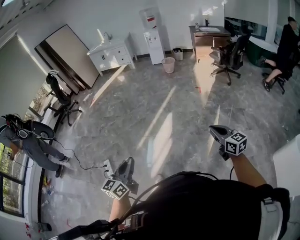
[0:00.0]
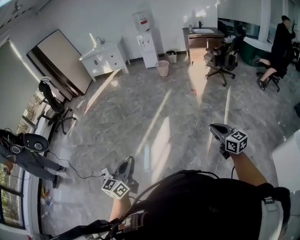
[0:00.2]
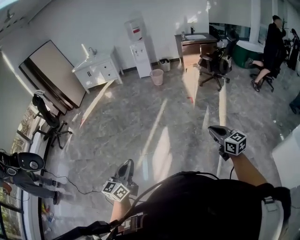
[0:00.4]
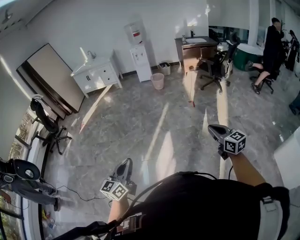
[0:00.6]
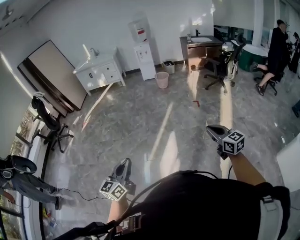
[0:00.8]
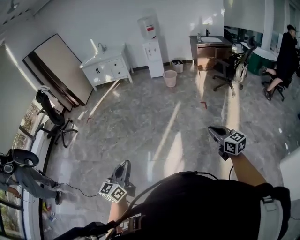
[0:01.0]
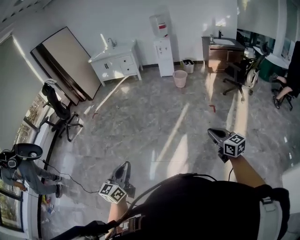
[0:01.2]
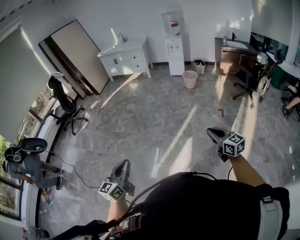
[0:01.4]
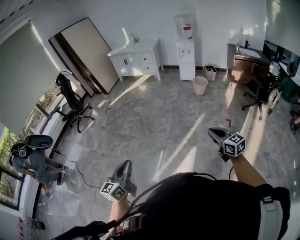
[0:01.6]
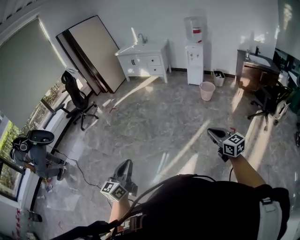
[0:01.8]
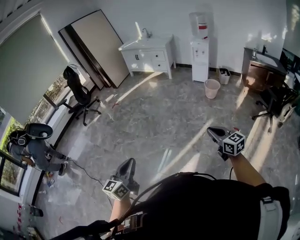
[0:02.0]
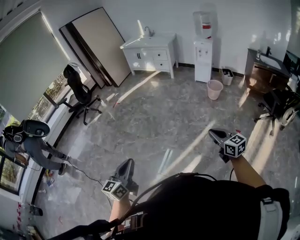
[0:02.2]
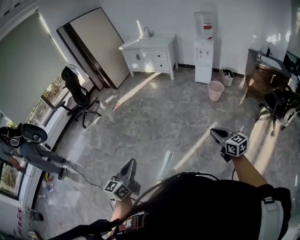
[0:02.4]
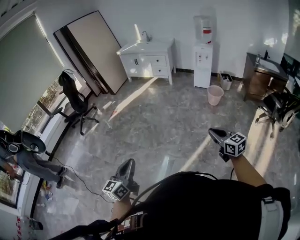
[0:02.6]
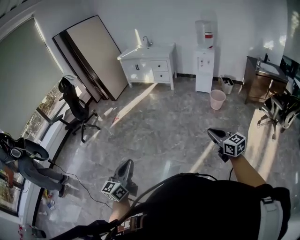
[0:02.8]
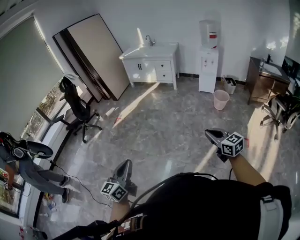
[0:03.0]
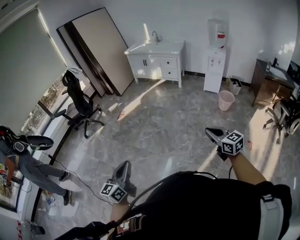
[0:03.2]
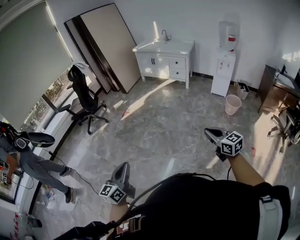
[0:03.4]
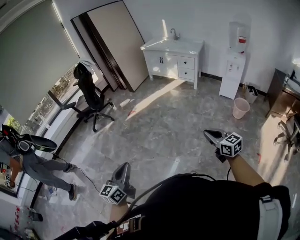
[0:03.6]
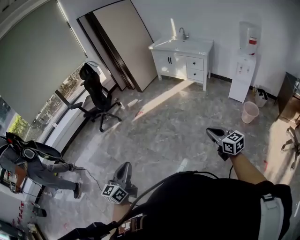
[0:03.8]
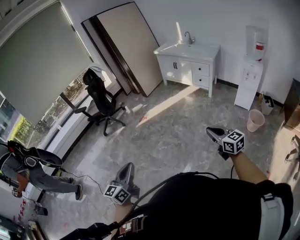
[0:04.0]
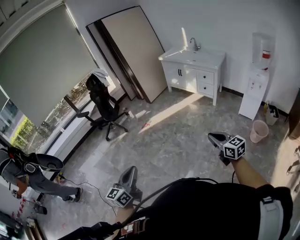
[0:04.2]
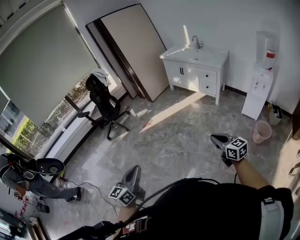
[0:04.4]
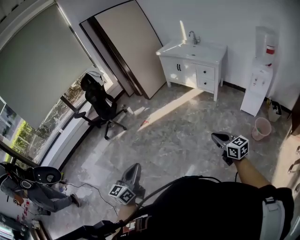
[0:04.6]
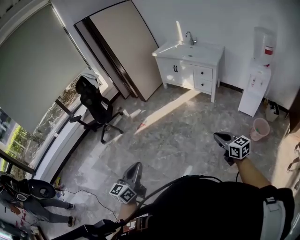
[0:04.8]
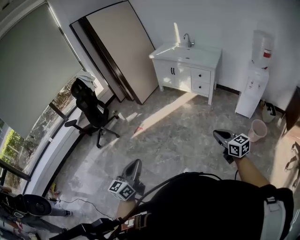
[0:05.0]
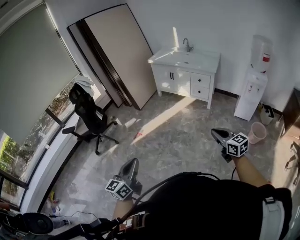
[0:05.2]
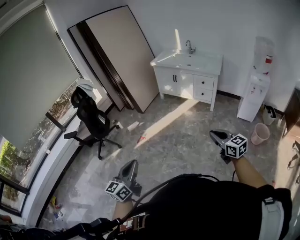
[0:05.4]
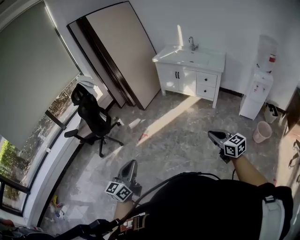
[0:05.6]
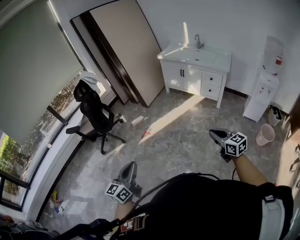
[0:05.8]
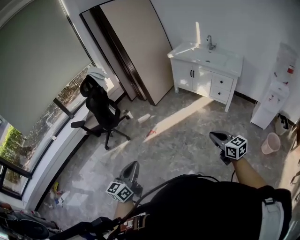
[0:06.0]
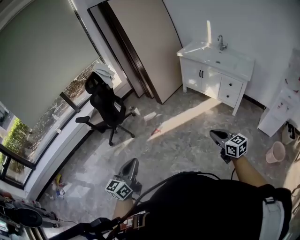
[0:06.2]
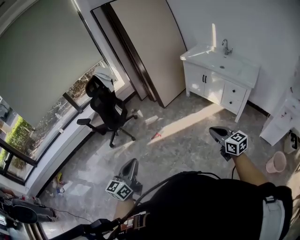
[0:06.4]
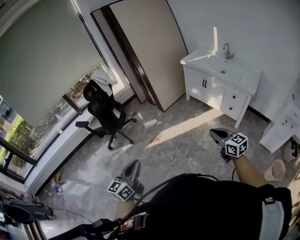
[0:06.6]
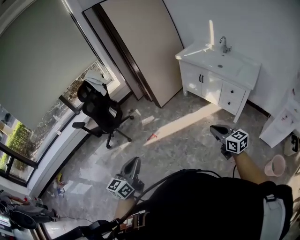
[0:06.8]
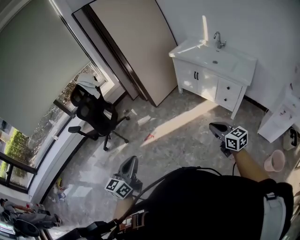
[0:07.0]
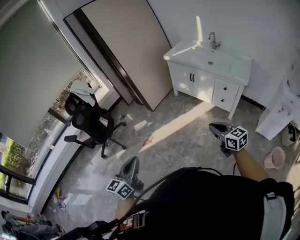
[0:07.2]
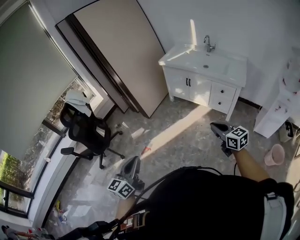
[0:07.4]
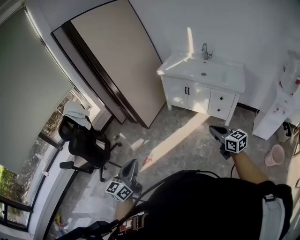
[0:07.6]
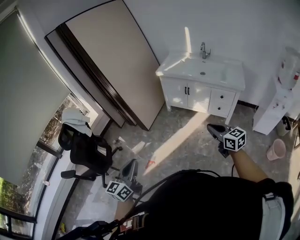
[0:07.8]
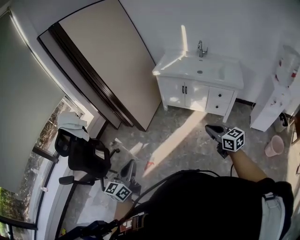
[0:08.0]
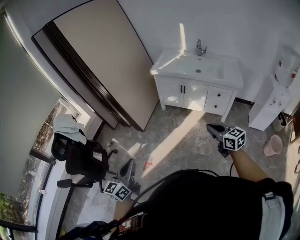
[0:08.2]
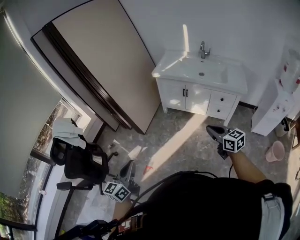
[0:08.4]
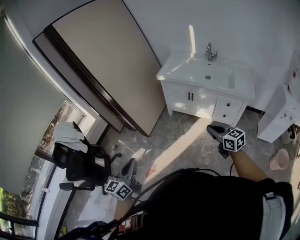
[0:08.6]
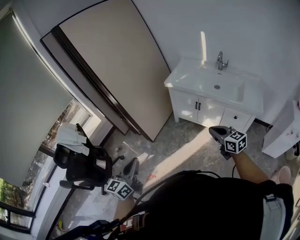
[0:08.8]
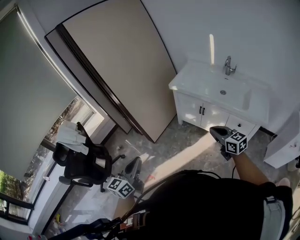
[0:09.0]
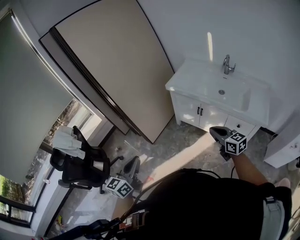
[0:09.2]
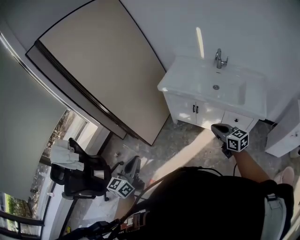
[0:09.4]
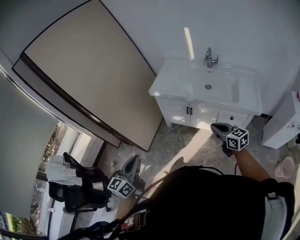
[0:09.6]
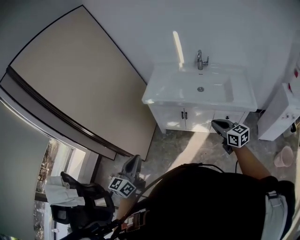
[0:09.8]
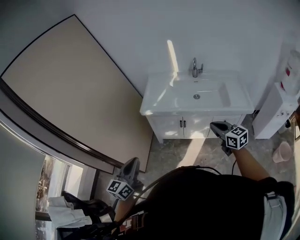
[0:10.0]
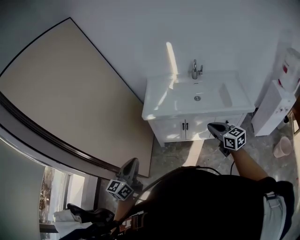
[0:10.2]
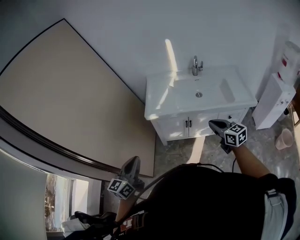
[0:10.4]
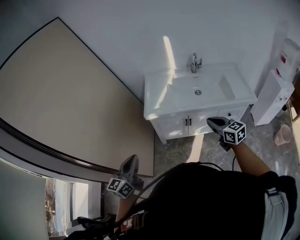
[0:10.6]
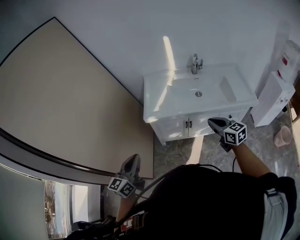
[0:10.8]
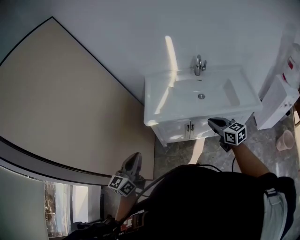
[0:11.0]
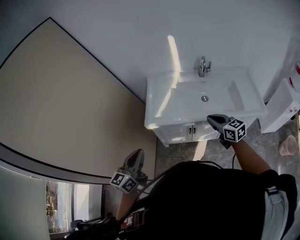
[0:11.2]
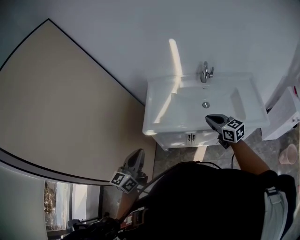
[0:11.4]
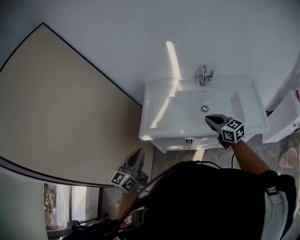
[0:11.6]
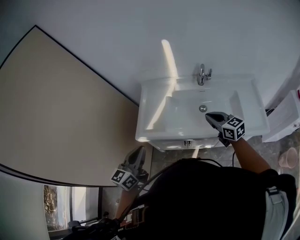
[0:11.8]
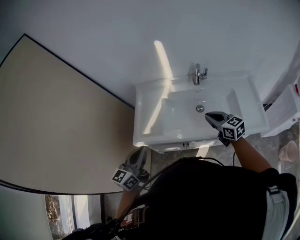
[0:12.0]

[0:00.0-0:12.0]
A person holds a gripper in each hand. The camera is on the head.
0:00.0 to 0:01.6: The pair of grippers is taken forward, some 50 cm.
0:01.6 to 0:03.0: Both grippers travel together forward and to the left, roughly 40 cm.
0:03.0 to 0:04.4: The grippers both shift forward by some 35 cm.
0:04.4 to 0:06.0: Both grippers move forward and to the left, some 40 cm.
0:06.0 to 0:07.6: The grippers both shift forward by about 40 cm.
0:07.6 to 0:09.0: The two grippers go some 35 cm forward.
0:09.0 to 0:10.4: The right gripper shifts by some 25 cm, and rotates some 30 degrees. Meanwhile the left gripper moves some 40 cm, and turns by some 30 degrees.
0:10.4 to 0:12.0: The right gripper moves forward, roughly 35 cm. The left gripper goes about 40 cm forward and to the right.

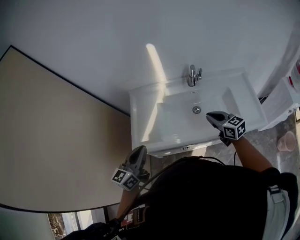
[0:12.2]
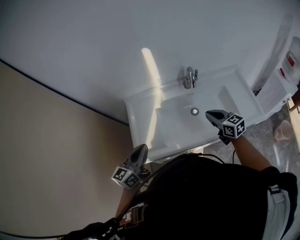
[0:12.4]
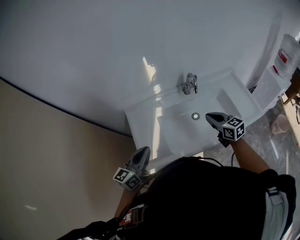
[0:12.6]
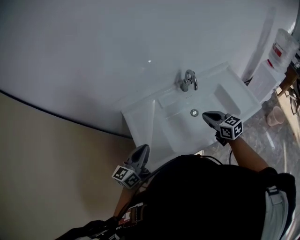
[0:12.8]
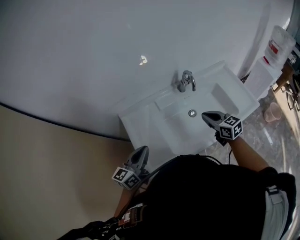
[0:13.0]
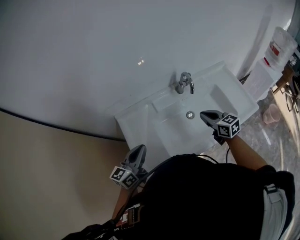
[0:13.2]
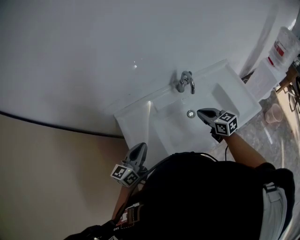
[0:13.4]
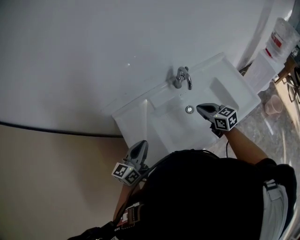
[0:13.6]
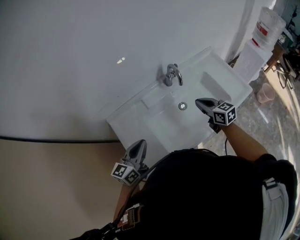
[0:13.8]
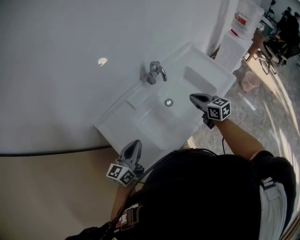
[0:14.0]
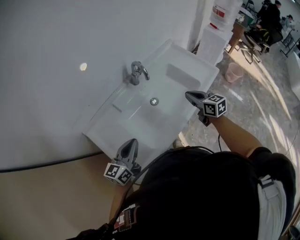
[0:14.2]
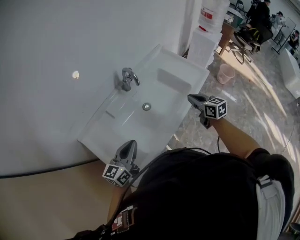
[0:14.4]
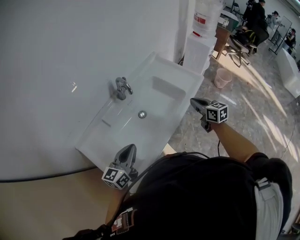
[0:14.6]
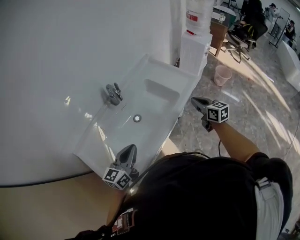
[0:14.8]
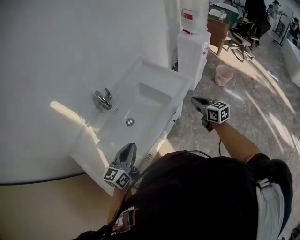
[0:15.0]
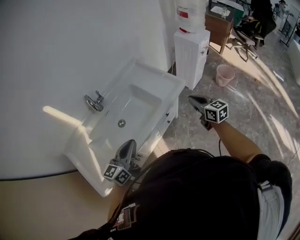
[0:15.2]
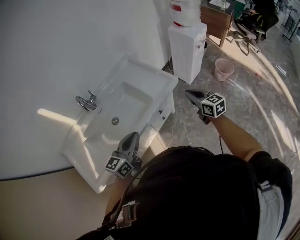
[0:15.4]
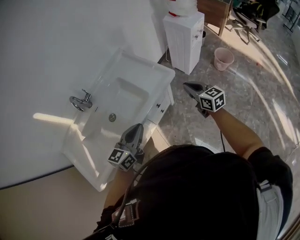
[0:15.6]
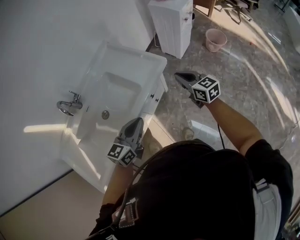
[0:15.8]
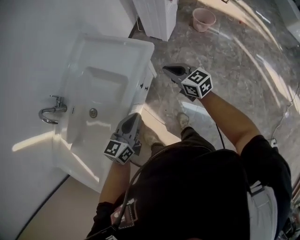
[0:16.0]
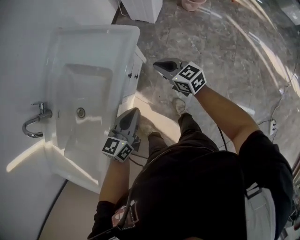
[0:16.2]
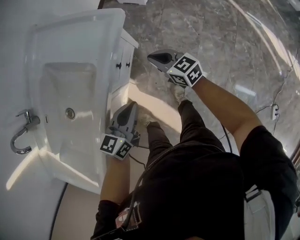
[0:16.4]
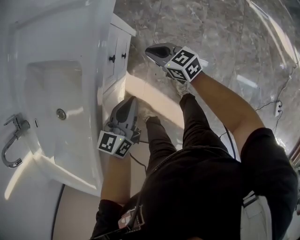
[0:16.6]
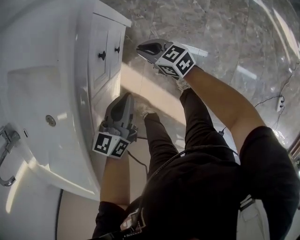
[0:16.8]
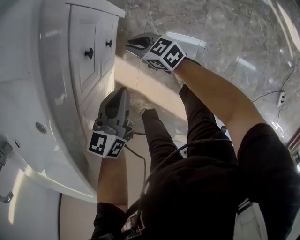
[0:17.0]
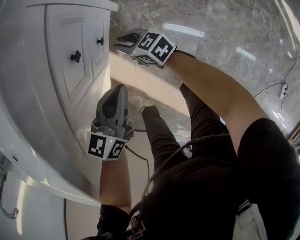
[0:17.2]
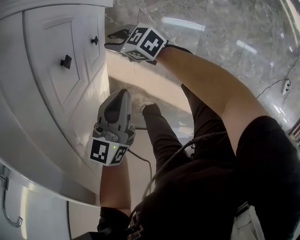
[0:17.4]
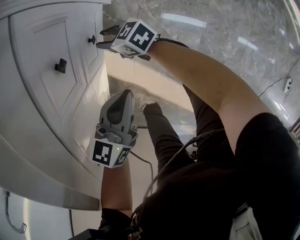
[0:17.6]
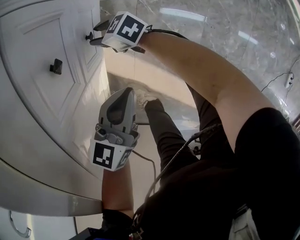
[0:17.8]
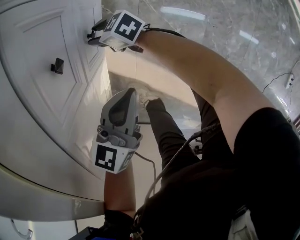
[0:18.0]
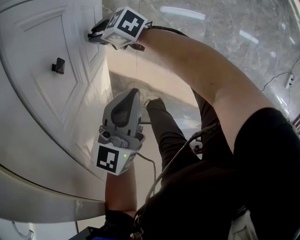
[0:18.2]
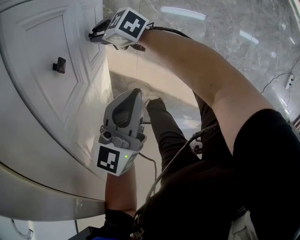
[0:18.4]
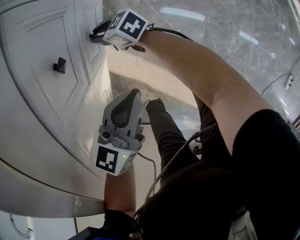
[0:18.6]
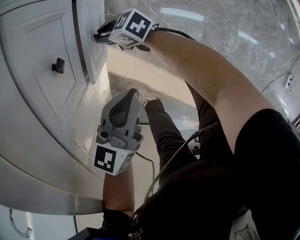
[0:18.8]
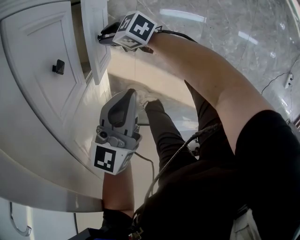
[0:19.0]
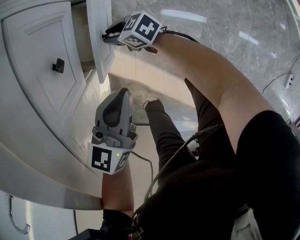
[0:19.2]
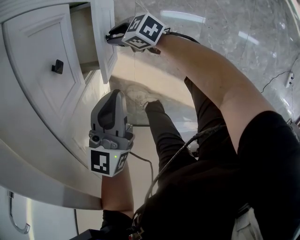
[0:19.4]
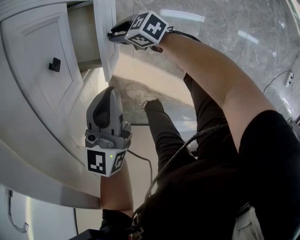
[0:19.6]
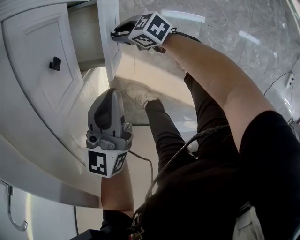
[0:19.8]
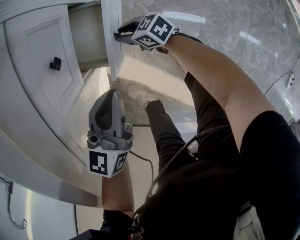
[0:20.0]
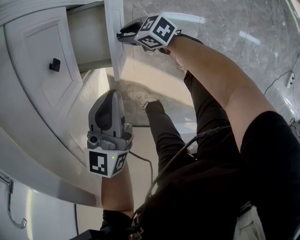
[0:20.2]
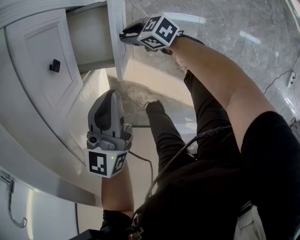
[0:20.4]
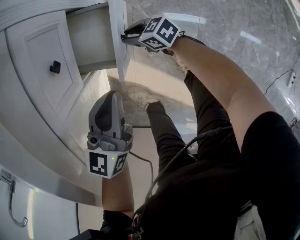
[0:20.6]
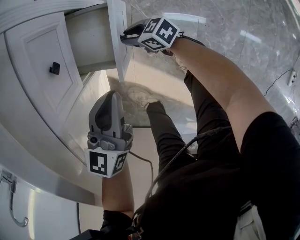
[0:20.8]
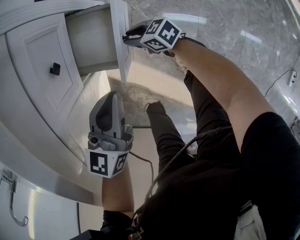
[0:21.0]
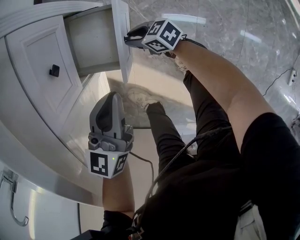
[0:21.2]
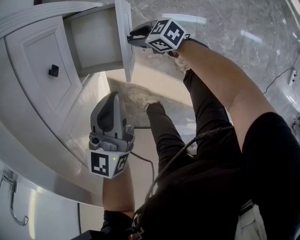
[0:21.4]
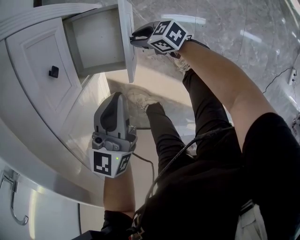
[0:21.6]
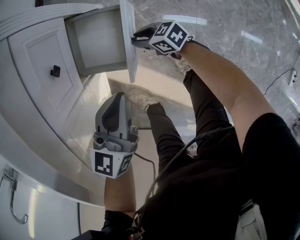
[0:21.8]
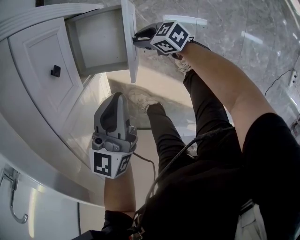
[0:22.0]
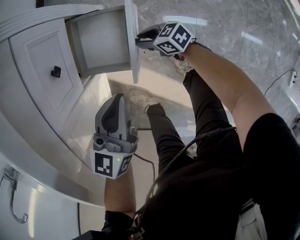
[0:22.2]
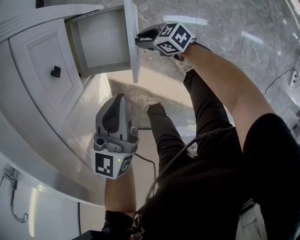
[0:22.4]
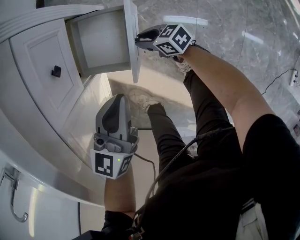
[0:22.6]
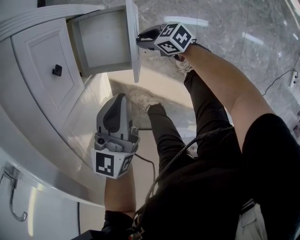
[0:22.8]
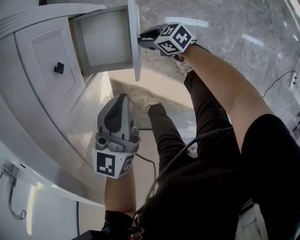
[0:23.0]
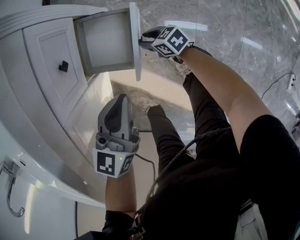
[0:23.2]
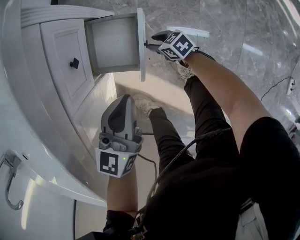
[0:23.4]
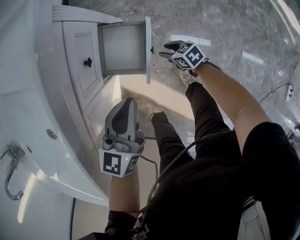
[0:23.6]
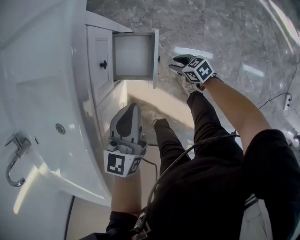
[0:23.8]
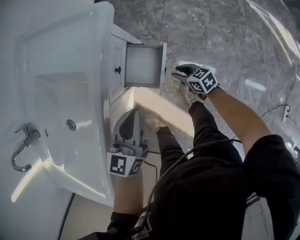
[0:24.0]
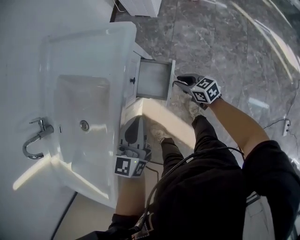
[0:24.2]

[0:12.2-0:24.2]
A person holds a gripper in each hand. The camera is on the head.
0:12.2 to 0:13.8: The left gripper changes place by approximately 20 cm, and changes its angle by some 30 degrees. Meanwhile the right gripper ends up about 10 cm from where it was, and changes its angle by approximately 30 degrees.
0:13.8 to 0:15.2: The left gripper shifts by some 40 cm. Meanwhile the right gripper ends up roughly 50 cm from where it was, and swivels roughly 20 degrees.
0:15.2 to 0:16.6: The left gripper shifts approximately 40 cm downward and to the right, and turns by some 30 degrees; the right gripper travels downward by roughly 40 cm.
0:16.6 to 0:18.2: The left gripper moves downward, some 20 cm. Meanwhile the right gripper travels downward and to the left by approximately 35 cm, swivels approximately 20 degrees, and opens its fingers.
0:18.2 to 0:19.8: The right gripper moves to the right and backward, about 10 cm.
0:19.8 to 0:21.2: The right gripper shifts by roughly 5 cm.
0:21.2 to 0:22.6: The grippers stay close to where they were, moving slightly.
0:22.6 to 0:24.2: Both grippers move upward, about 30 cm.
